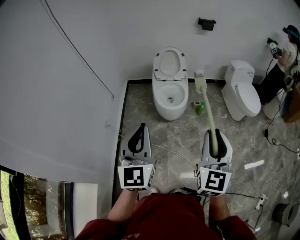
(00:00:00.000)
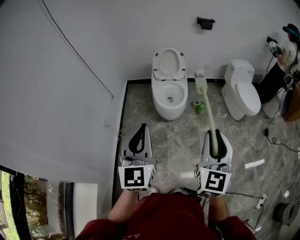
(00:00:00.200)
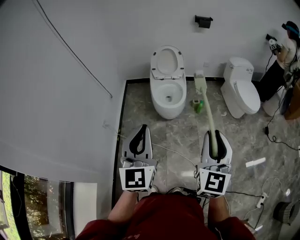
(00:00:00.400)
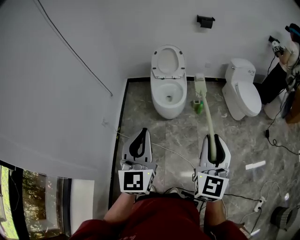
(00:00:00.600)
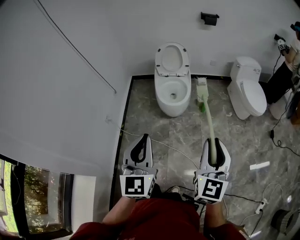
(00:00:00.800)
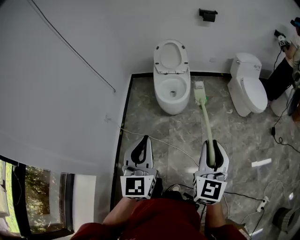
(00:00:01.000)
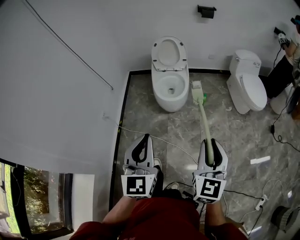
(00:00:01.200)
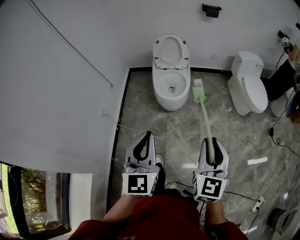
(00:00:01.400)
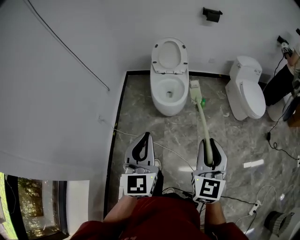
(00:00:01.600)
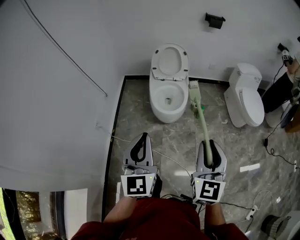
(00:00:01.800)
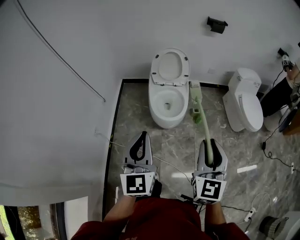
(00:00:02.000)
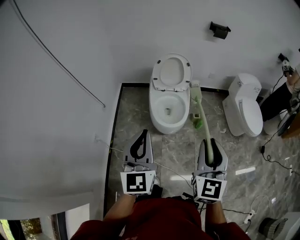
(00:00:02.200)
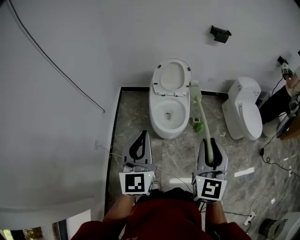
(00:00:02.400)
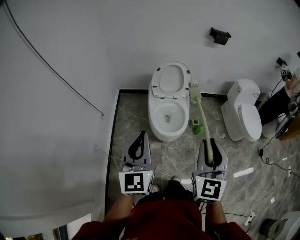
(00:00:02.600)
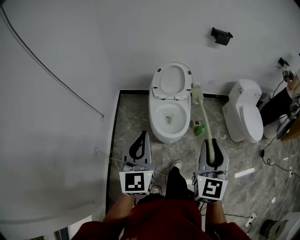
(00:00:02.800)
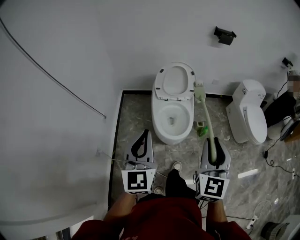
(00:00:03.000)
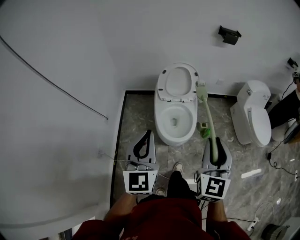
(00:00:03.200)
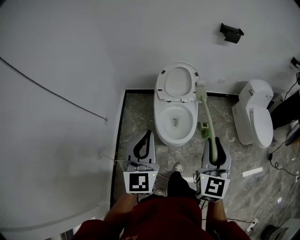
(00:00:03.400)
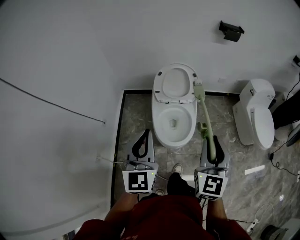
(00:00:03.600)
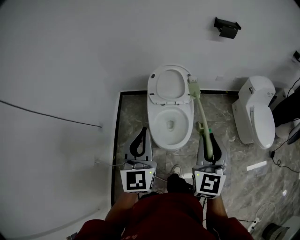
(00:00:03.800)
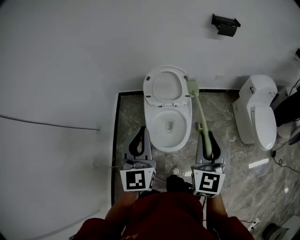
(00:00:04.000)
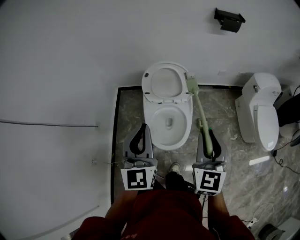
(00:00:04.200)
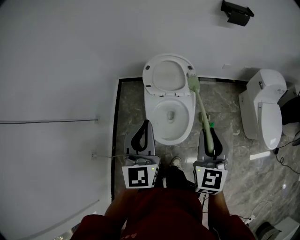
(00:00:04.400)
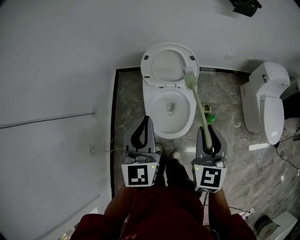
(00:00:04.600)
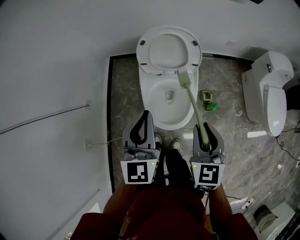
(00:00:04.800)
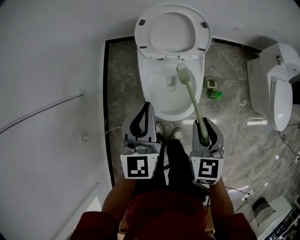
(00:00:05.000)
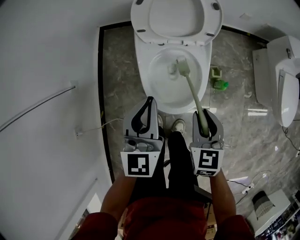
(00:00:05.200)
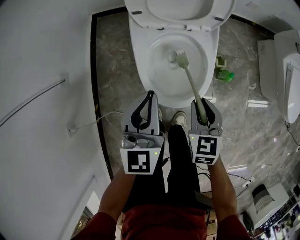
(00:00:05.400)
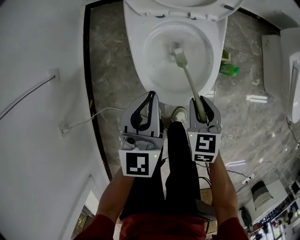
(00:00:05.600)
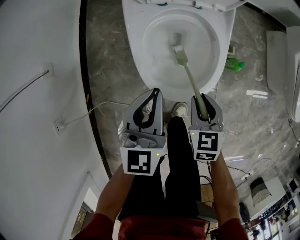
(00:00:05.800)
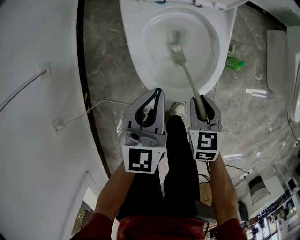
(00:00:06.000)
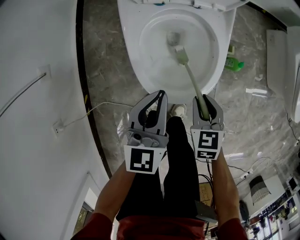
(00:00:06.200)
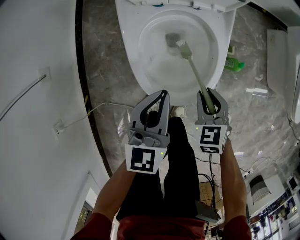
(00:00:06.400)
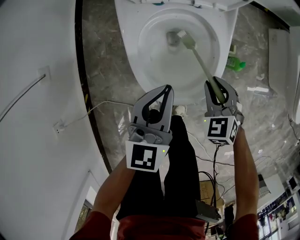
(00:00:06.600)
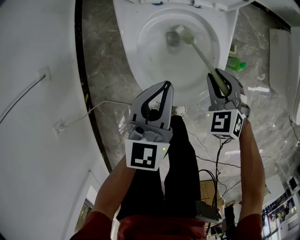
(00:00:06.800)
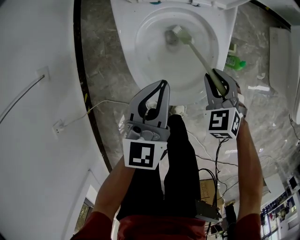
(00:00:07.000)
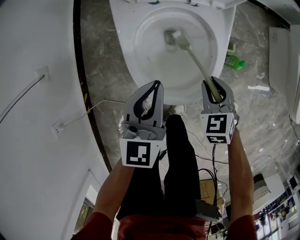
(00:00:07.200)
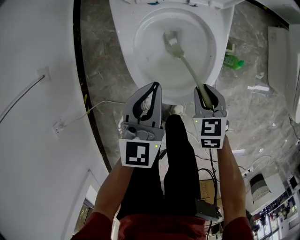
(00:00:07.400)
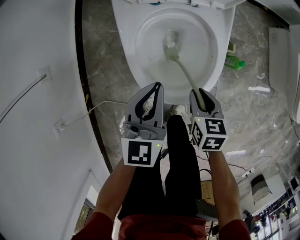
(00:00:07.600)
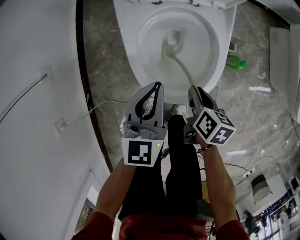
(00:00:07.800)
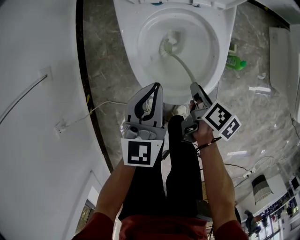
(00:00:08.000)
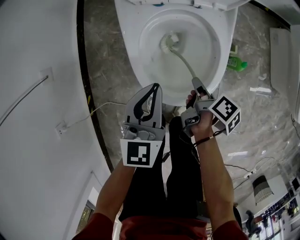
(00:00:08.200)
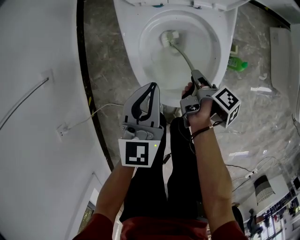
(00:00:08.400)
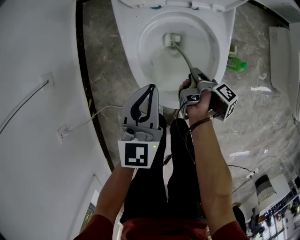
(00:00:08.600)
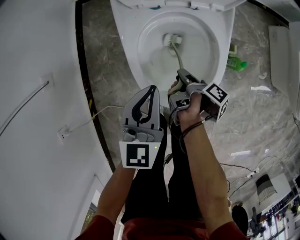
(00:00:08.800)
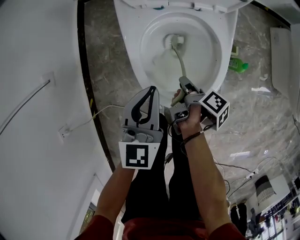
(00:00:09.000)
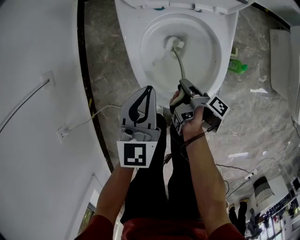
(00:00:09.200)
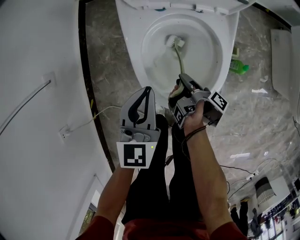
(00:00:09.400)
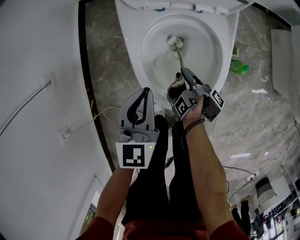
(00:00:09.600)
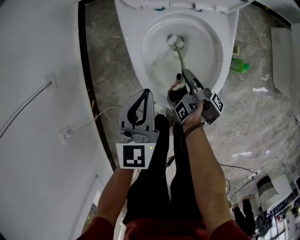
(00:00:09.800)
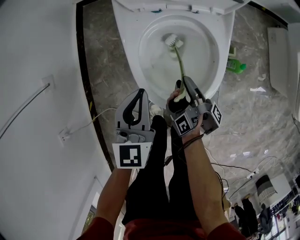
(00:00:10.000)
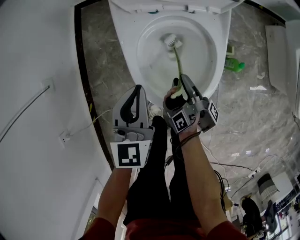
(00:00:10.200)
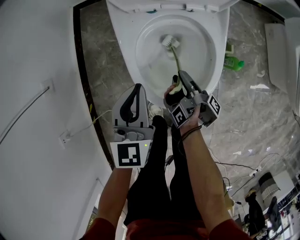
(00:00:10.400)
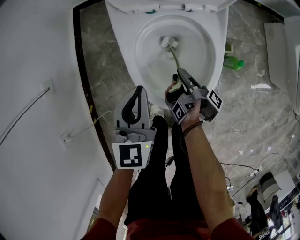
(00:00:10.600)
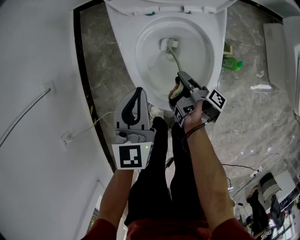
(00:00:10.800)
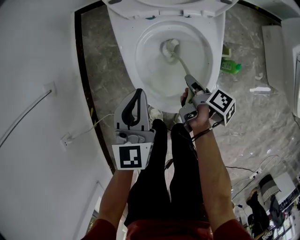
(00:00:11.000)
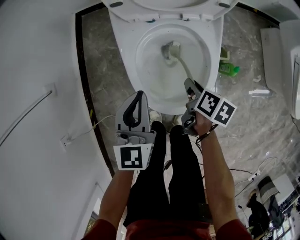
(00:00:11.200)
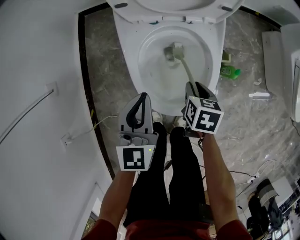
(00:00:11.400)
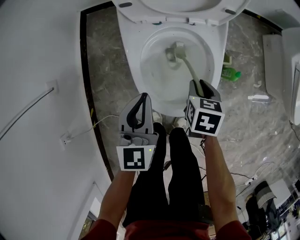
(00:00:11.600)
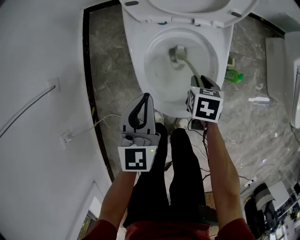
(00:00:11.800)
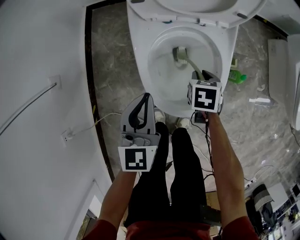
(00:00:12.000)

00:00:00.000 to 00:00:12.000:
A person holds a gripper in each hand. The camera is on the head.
00:00:00.000 to 00:00:01.600: The right gripper goes about 10 cm downward and forward. Meanwhile the left gripper heads to the right, downward and forward, covering roughly 10 cm.
00:00:01.600 to 00:00:03.000: The left gripper heads forward and to the left, covering some 30 cm, while the right gripper travels forward by some 25 cm.
00:00:03.000 to 00:00:04.400: The left gripper shifts some 25 cm forward and to the right; the right gripper goes some 25 cm forward.
00:00:04.400 to 00:00:06.000: Both grippers travel together downward, some 40 cm. The left gripper rotates roughly 20 degrees. Meanwhile the right gripper angles its fingers downward, by approximately 40 degrees.
00:00:06.000 to 00:00:07.600: The right gripper reaches some 10 cm forward, then returns.
00:00:07.600 to 00:00:09.000: The right gripper travels downward by some 5 cm, and rolls clockwise, seen from behind, by some 80 degrees.
00:00:09.000 to 00:00:10.400: The right gripper rotates roughly 40 degrees.
00:00:10.400 to 00:00:12.000: The right gripper moves forward, about 5 cm, moves about 5 cm upward and comes back, and twists roughly 120 degrees counterclockwise, seen from behind.

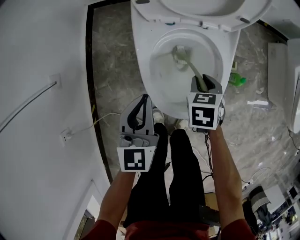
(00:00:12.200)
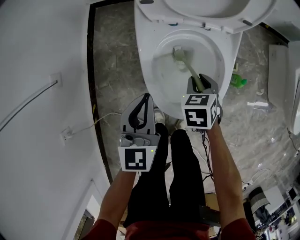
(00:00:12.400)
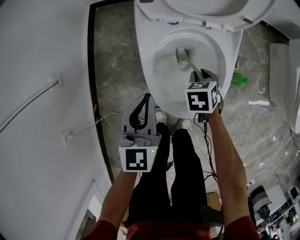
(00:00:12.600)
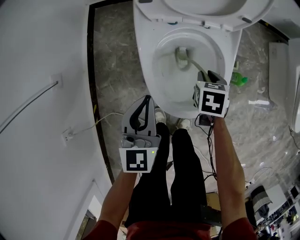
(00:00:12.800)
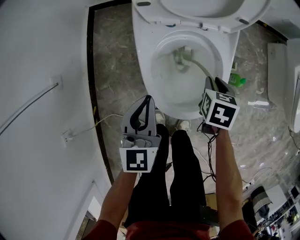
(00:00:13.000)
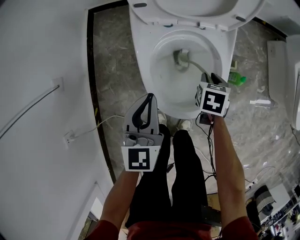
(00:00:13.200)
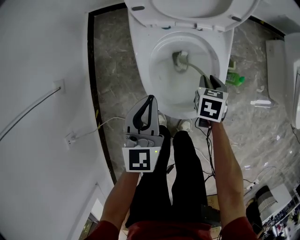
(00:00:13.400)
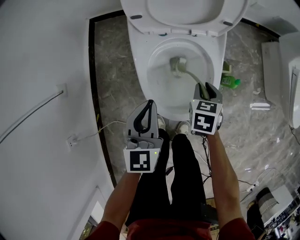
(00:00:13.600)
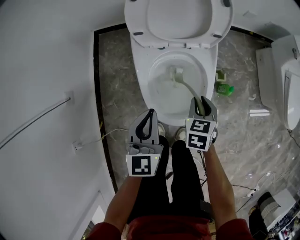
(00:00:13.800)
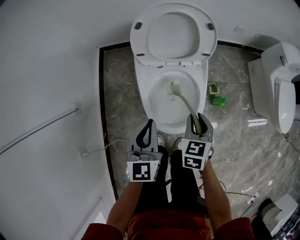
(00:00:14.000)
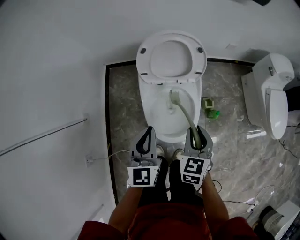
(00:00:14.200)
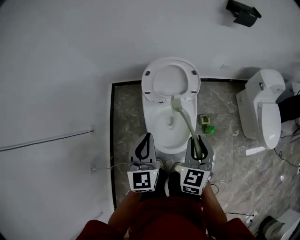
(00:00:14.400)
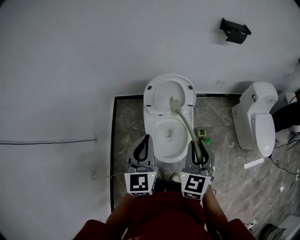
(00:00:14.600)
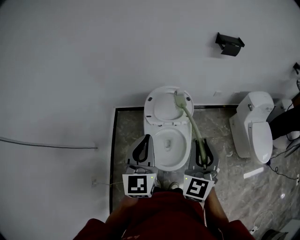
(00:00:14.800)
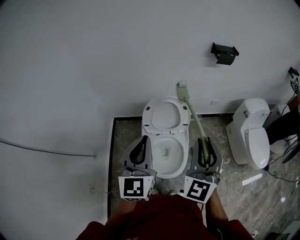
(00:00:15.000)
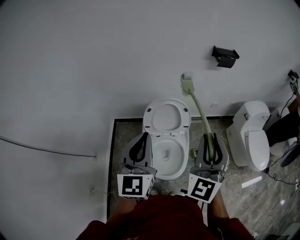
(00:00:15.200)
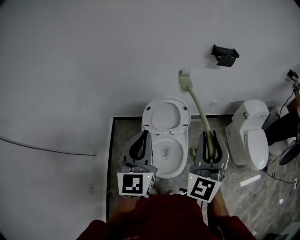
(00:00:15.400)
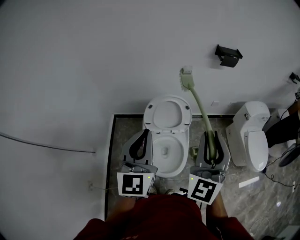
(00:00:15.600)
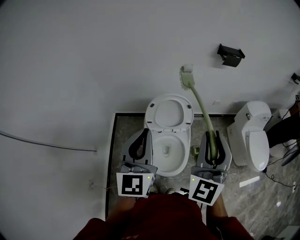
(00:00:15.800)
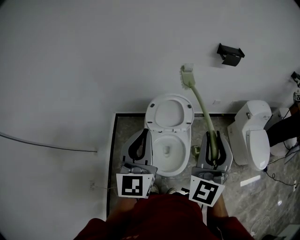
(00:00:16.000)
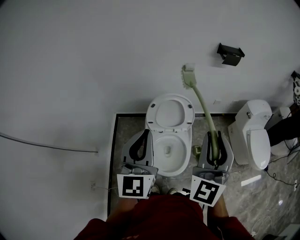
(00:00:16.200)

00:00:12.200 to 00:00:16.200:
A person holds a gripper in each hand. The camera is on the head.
00:00:13.600 to 00:00:14.800: The two grippers go some 50 cm upward. The right gripper points its fingers roughly 50 degrees further upward.
00:00:14.800 to 00:00:16.200: The right gripper goes approximately 10 cm upward; the left gripper is displaced upward by approximately 5 cm.

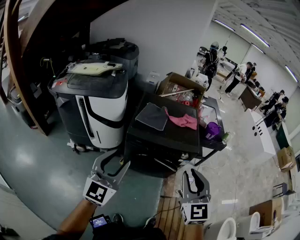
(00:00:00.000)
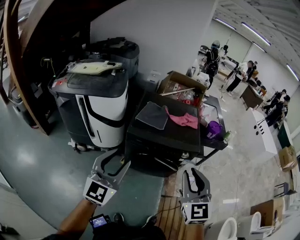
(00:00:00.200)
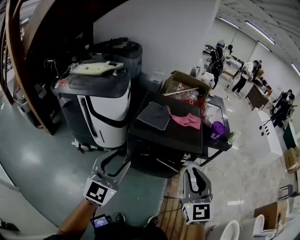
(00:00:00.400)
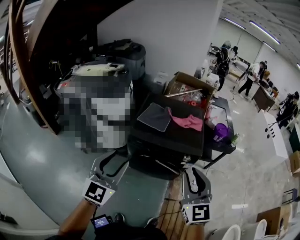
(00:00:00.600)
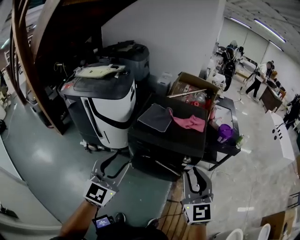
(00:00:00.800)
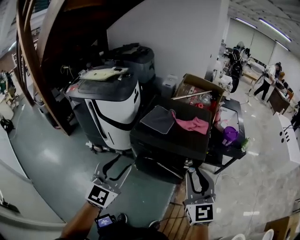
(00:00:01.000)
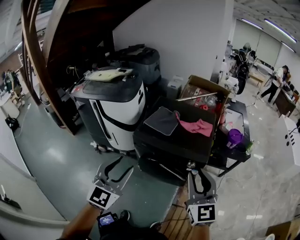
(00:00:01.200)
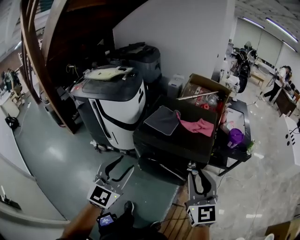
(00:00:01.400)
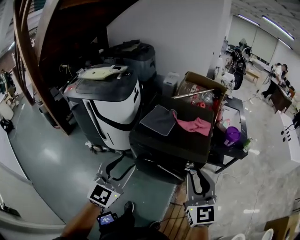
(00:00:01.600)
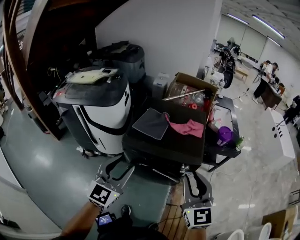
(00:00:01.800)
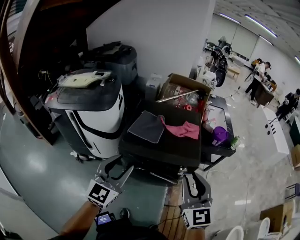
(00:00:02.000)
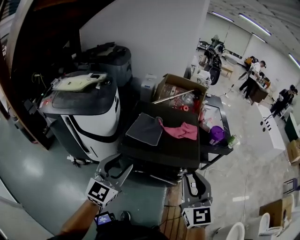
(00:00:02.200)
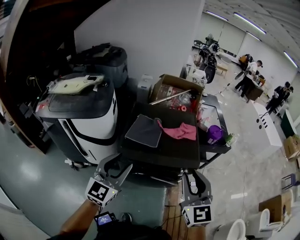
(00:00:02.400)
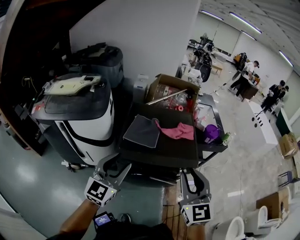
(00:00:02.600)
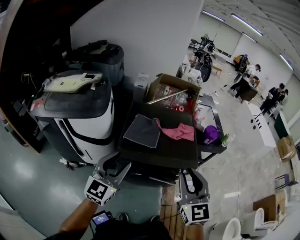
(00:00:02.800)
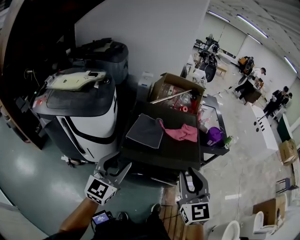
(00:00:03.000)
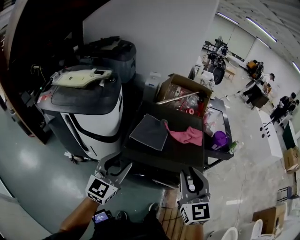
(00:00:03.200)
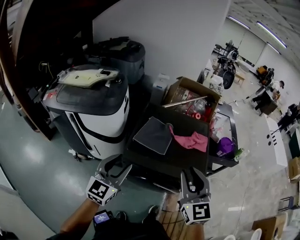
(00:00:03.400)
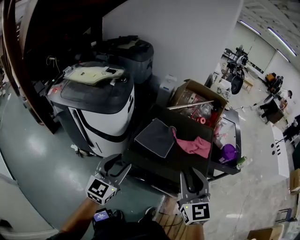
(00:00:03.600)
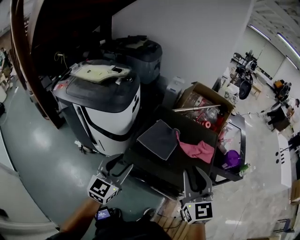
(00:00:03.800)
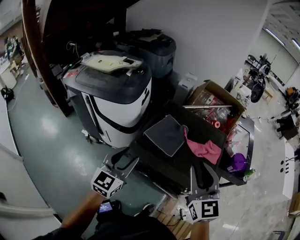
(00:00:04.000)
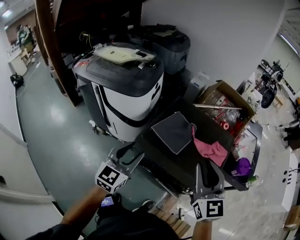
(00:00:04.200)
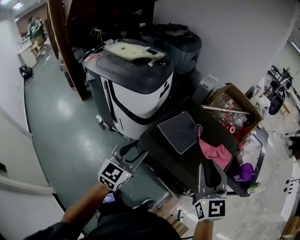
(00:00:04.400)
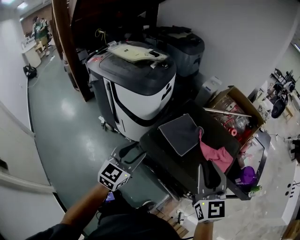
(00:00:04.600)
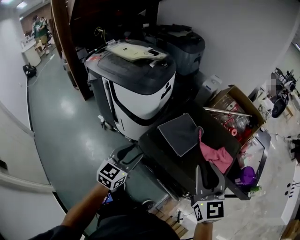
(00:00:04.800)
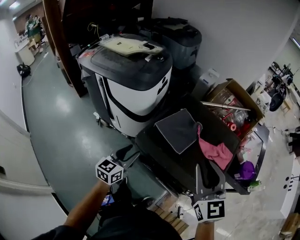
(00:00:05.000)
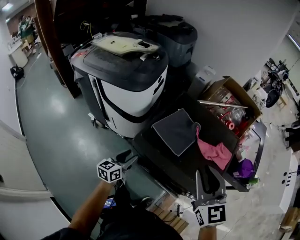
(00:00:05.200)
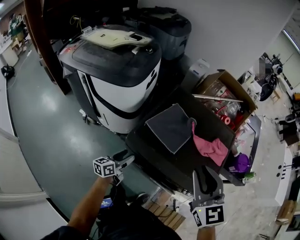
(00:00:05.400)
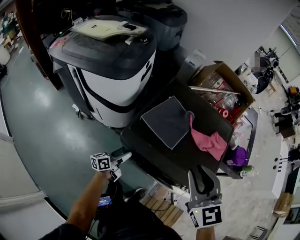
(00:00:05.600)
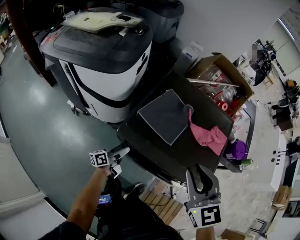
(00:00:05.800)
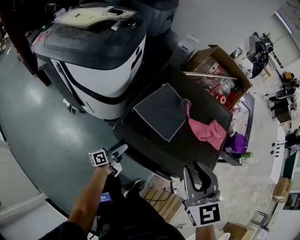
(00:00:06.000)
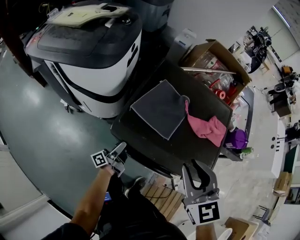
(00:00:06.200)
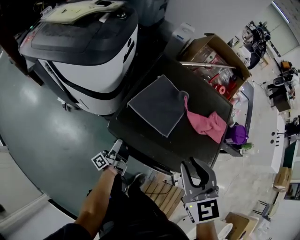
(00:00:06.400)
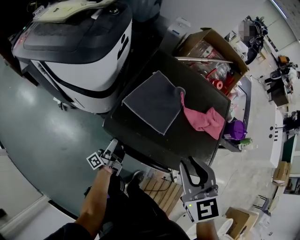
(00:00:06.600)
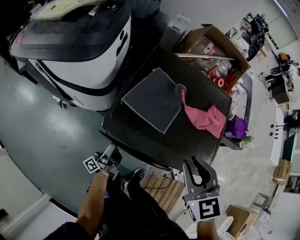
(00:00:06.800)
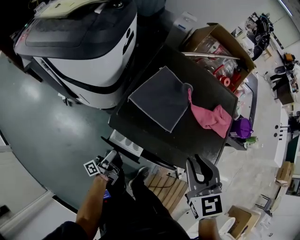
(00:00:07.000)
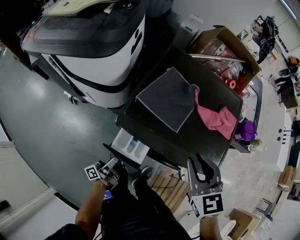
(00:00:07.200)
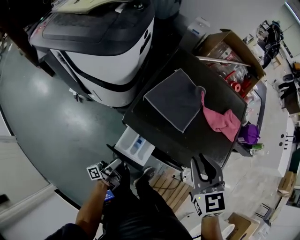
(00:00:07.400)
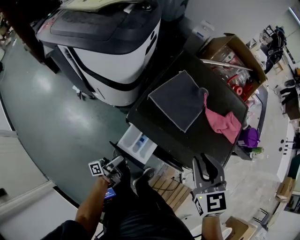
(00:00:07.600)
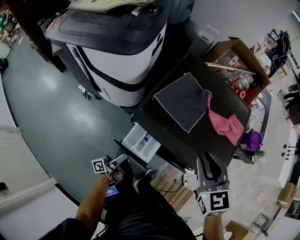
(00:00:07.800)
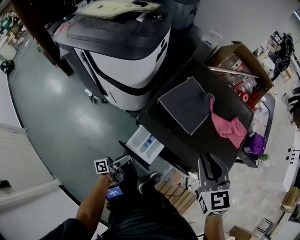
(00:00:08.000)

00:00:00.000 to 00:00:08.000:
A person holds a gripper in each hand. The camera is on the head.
00:00:00.000 to 00:00:01.600: Both grippers travel together to the right and forward, approximately 15 cm.
00:00:01.600 to 00:00:03.200: The left gripper travels forward and to the left by roughly 20 cm; the right gripper is displaced to the left and forward by roughly 15 cm.
00:00:03.200 to 00:00:04.800: The right gripper changes place by about 15 cm, and swivels some 30 degrees. The left gripper travels downward by approximately 10 cm, and rotates about 30 degrees.
00:00:04.800 to 00:00:06.400: The left gripper heads downward, covering roughly 25 cm, rolls counterclockwise, seen from behind, by some 90 degrees, and opens up; the right gripper shifts approximately 10 cm downward, and swivels about 20 degrees.
00:00:06.400 to 00:00:08.000: The left gripper moves backward, approximately 15 cm, and changes its angle by some 20 degrees.
